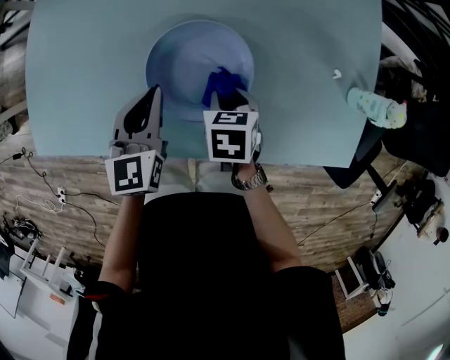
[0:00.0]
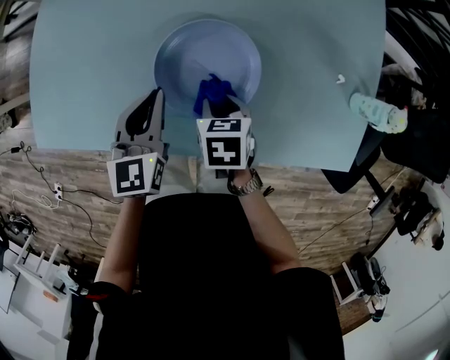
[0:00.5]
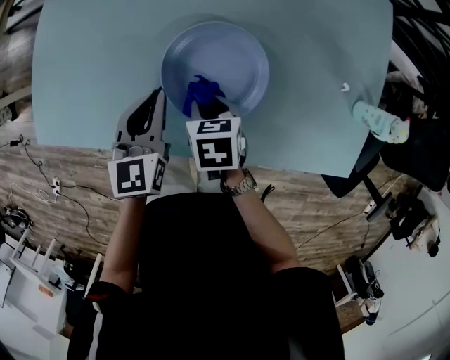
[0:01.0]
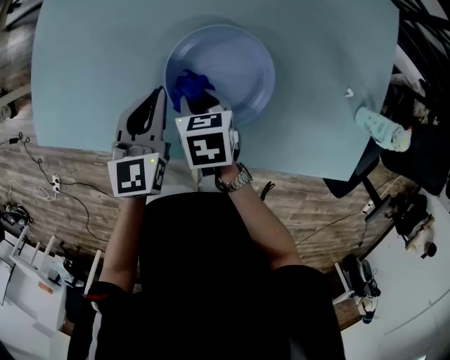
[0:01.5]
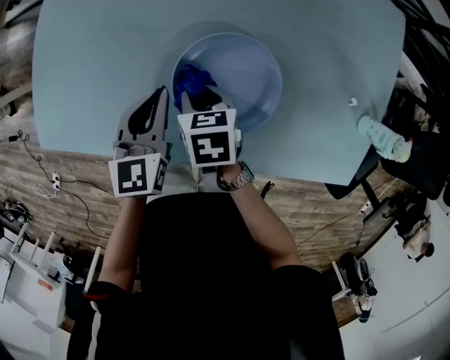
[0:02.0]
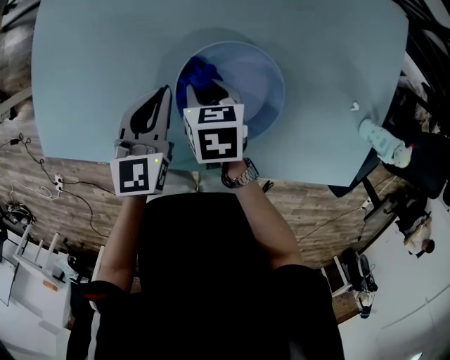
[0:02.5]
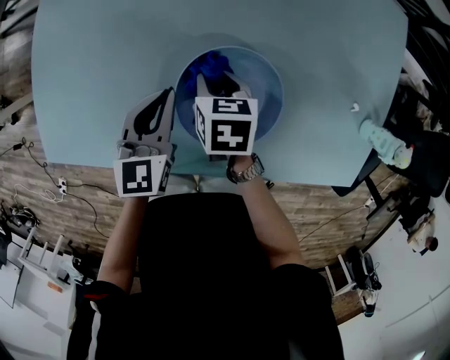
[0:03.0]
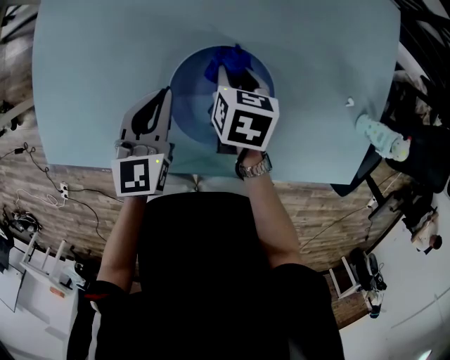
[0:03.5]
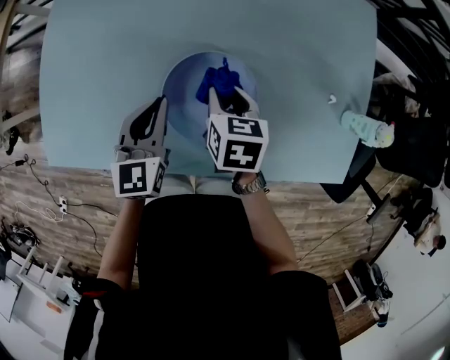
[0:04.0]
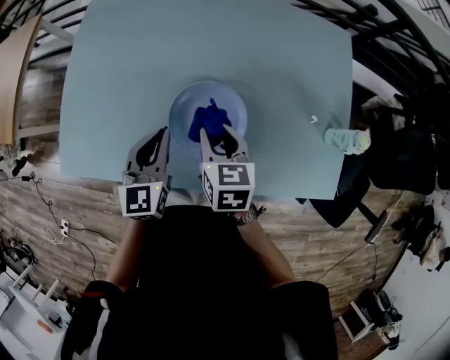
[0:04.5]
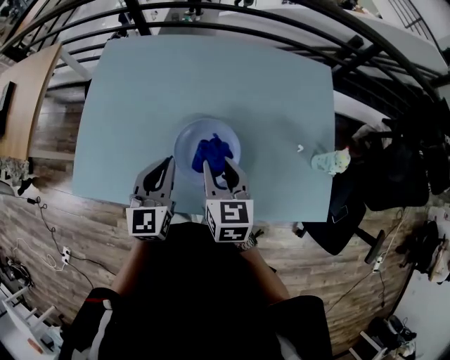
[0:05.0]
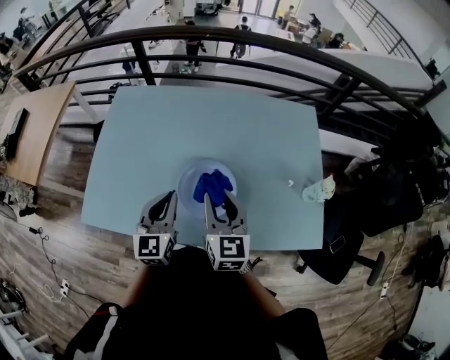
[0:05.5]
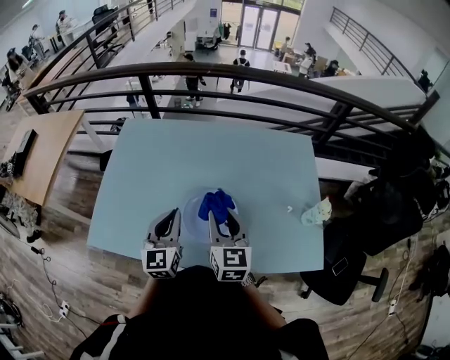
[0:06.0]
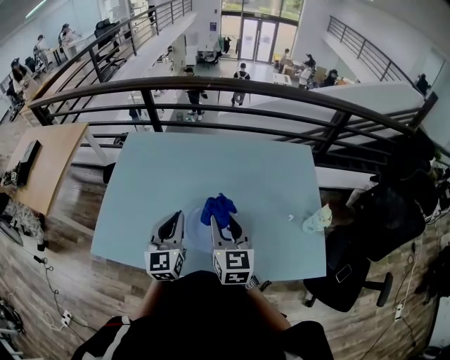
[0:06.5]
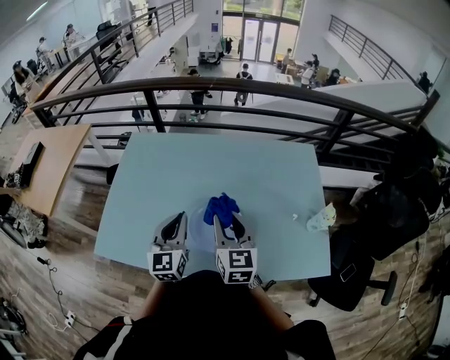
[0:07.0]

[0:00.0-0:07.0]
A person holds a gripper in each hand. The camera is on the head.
0:00.0 to 0:02.0: The right gripper shifts approximately 15 cm to the left and forward. The left gripper moves about 5 cm.
0:02.0 to 0:03.5: The right gripper shifts roughly 15 cm to the right and forward, and turns by approximately 20 degrees.
0:03.5 to 0:05.0: Both grippers travel together upward and backward, approximately 20 cm. The right gripper tilts its fingers some 30 degrees upward.
0:05.0 to 0:07.0: The right gripper moves upward, some 10 cm; the left gripper moves upward, approximately 5 cm.

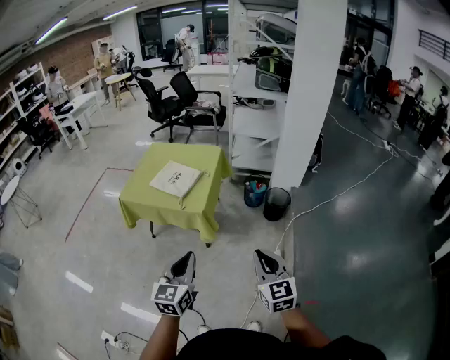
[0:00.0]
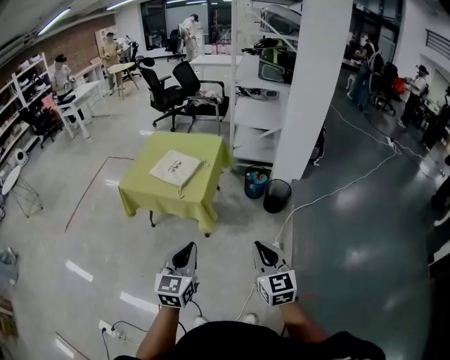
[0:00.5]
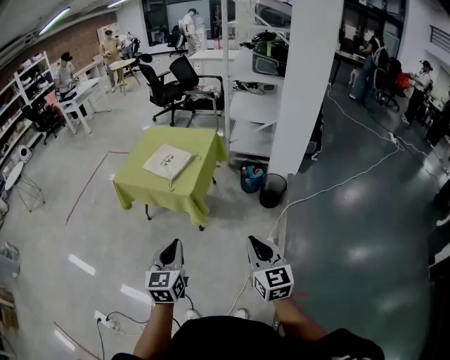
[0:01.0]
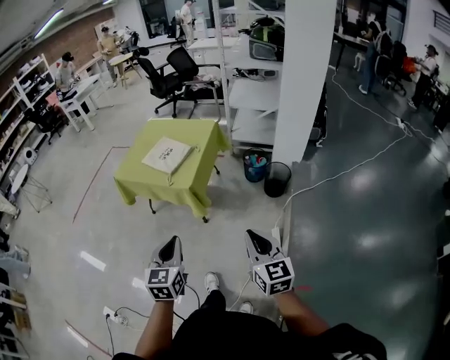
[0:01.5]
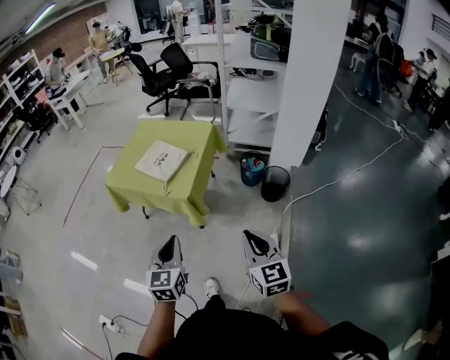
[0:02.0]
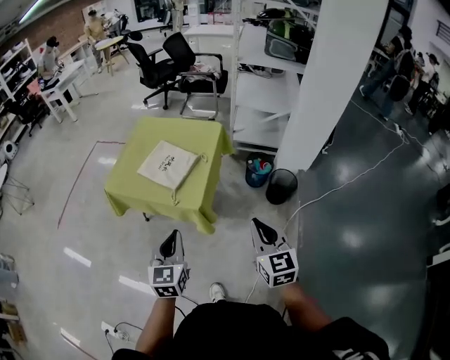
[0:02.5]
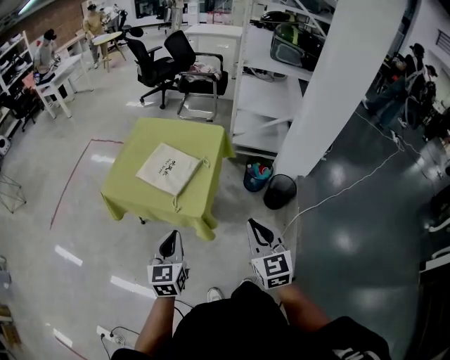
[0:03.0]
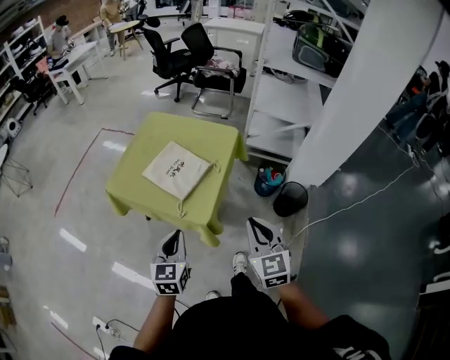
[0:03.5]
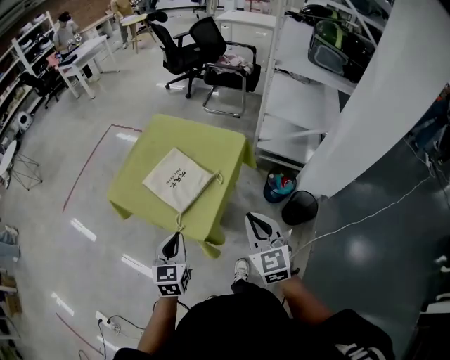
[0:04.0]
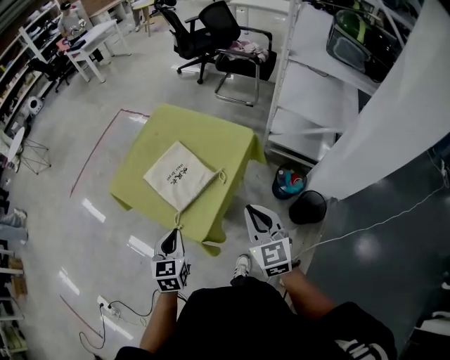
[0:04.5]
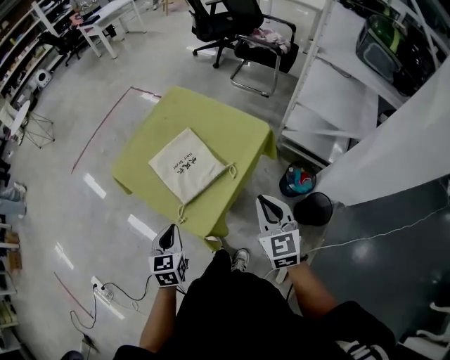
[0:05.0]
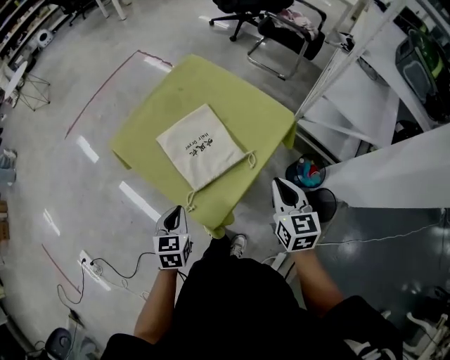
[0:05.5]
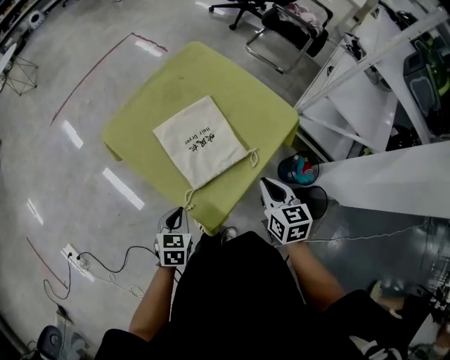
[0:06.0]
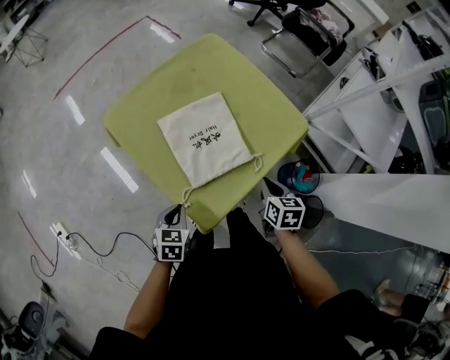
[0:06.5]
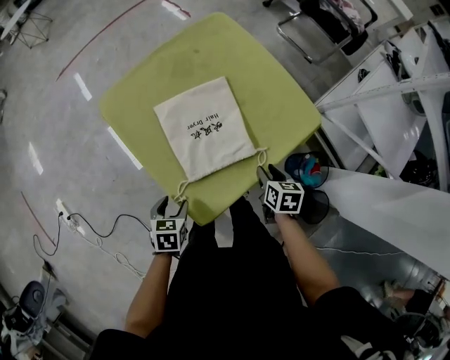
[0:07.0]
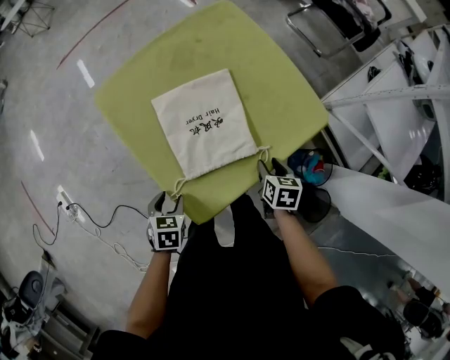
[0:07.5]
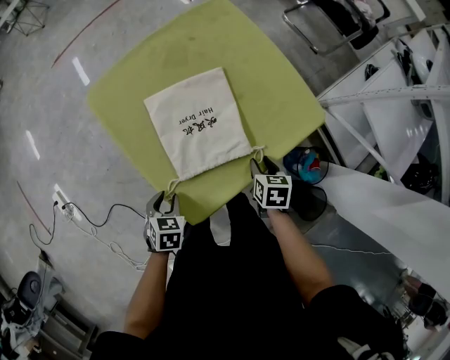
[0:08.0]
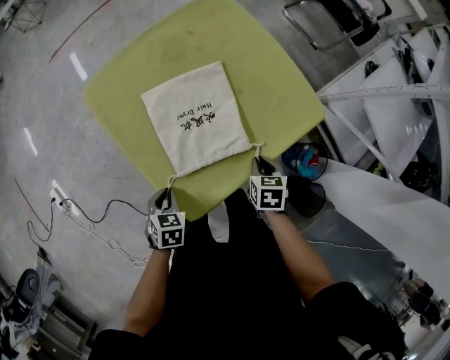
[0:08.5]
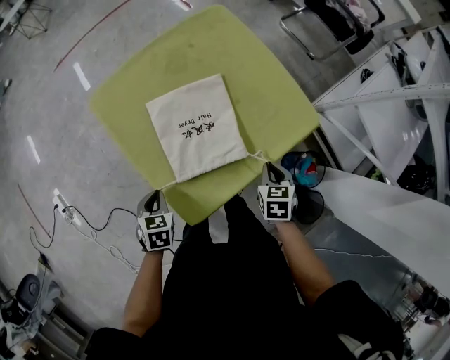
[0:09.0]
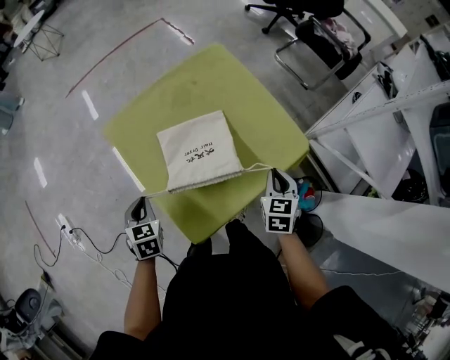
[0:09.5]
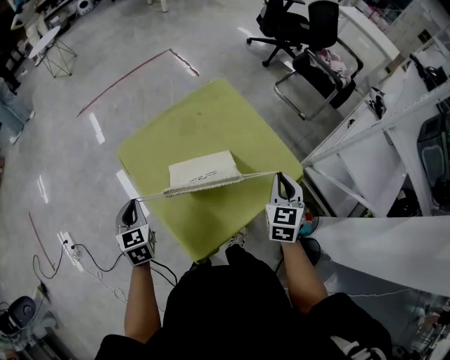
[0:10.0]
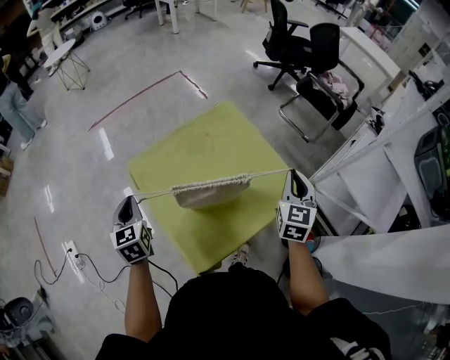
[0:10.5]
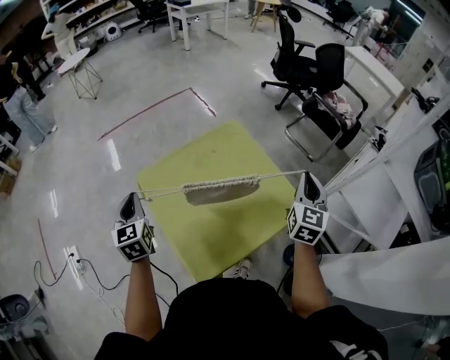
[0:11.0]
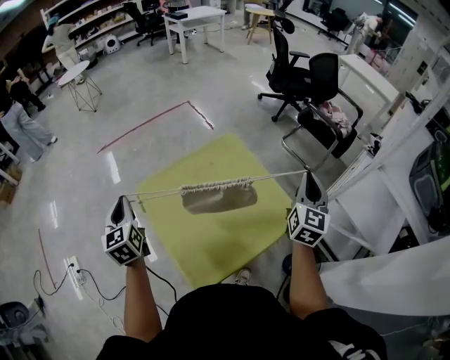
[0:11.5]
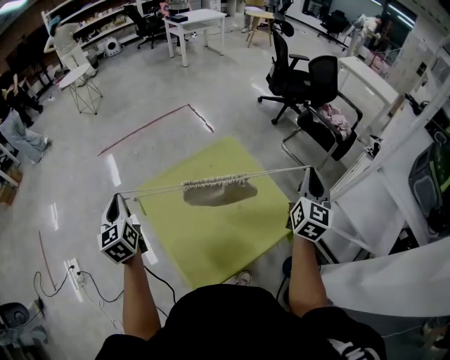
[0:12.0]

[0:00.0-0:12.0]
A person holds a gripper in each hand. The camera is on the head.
0:00.0 to 0:02.0: The left gripper heads forward, covering about 10 cm. The right gripper travels forward and to the right by approximately 10 cm.
0:02.0 to 0:04.0: Both grippers travel together forward, some 35 cm.
0:04.0 to 0:06.0: The right gripper goes some 25 cm forward and downward, and swivels approximately 30 degrees; the left gripper heads downward and forward, covering roughly 20 cm, and swivels roughly 30 degrees.
0:06.0 to 0:08.0: The right gripper is displaced downward and forward by roughly 20 cm, changes its angle by some 20 degrees, and opens its fingers. Meanwhile the left gripper travels downward by roughly 10 cm, swivels about 20 degrees, and opens.
0:08.0 to 0:10.0: The left gripper shifts some 25 cm upward, forward and to the left, swivels roughly 40 degrees, and closes. The right gripper shifts approximately 25 cm upward, tilts its fingers roughly 30 degrees upward, and closes.
0:10.0 to 0:12.0: The left gripper is displaced upward and forward by roughly 20 cm, and rotates some 30 degrees. Meanwhile the right gripper goes about 20 cm upward, forward and to the right, and swivels roughly 30 degrees.

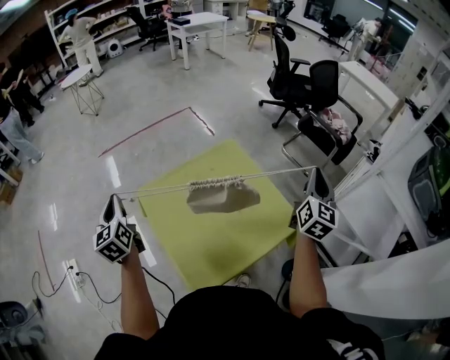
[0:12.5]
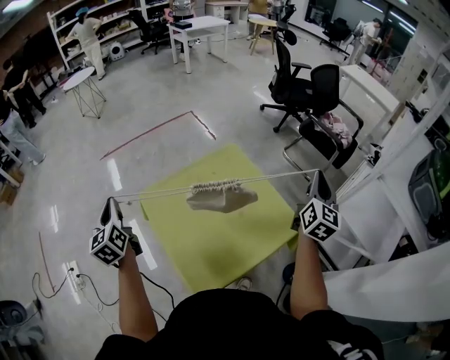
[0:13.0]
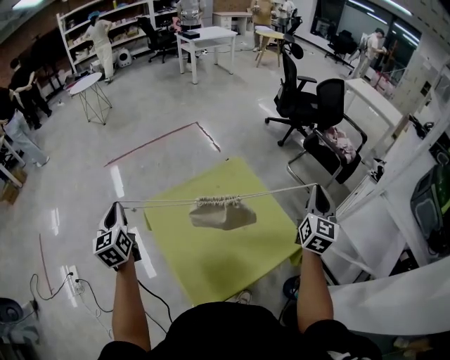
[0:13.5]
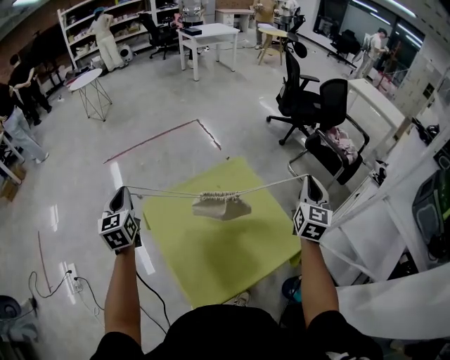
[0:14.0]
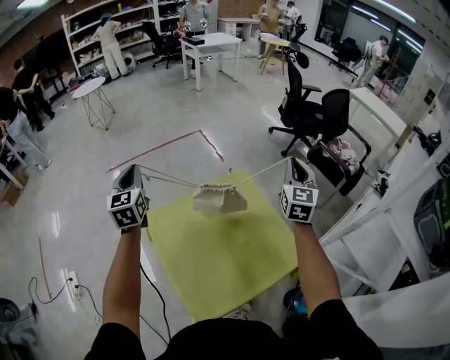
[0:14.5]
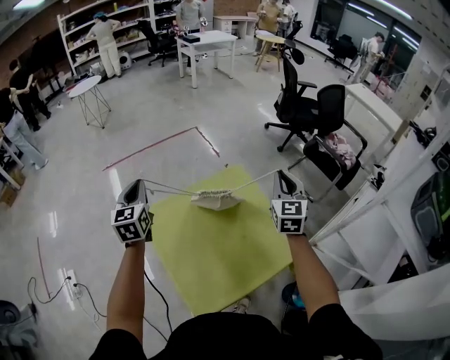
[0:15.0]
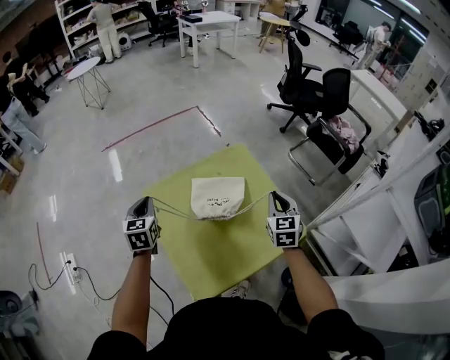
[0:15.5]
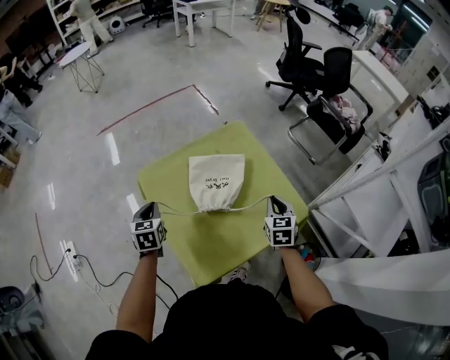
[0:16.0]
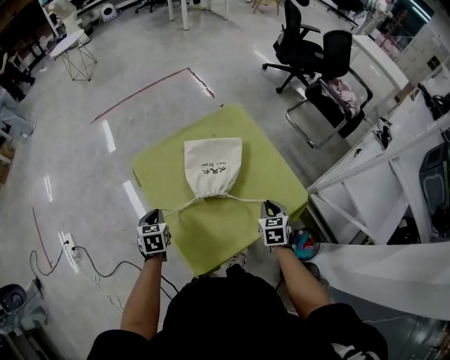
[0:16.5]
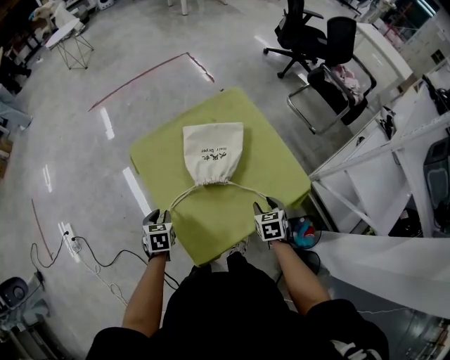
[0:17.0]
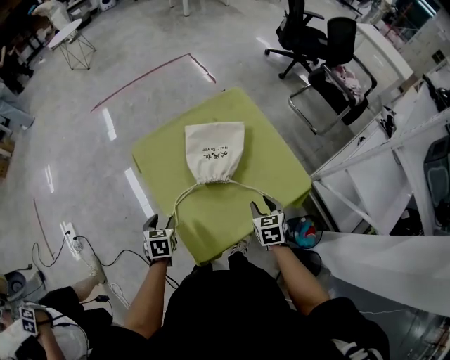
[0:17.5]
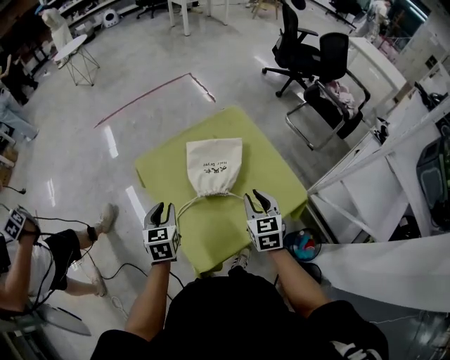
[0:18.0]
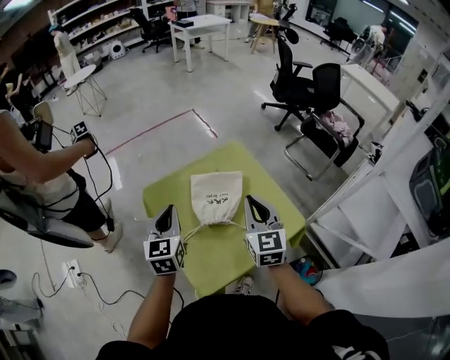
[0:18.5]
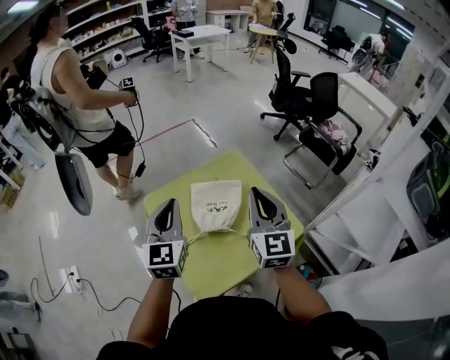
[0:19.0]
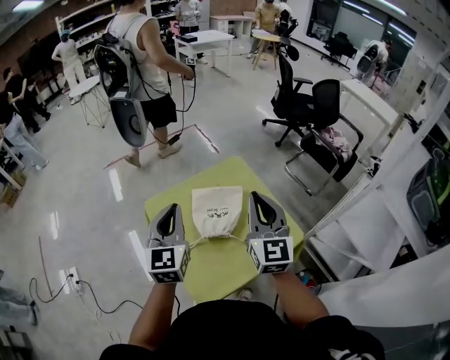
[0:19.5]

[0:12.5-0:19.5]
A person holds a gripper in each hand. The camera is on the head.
0:12.5 to 0:14.5: The left gripper moves forward and upward, approximately 20 cm, while the right gripper goes roughly 20 cm forward and to the left, and changes its angle by approximately 20 degrees.
0:14.5 to 0:16.0: Both grippers move downward and backward, approximately 30 cm. The right gripper angles its fingers downward, by about 30 degrees. The left gripper tilts its fingers some 30 degrees downward.
0:16.0 to 0:17.5: Both grippers travel together backward and downward, some 15 cm. The right gripper opens up. The left gripper opens up.
0:17.5 to 0:19.5: Both grippers move upward, roughly 35 cm. The left gripper tips its fingers upward by roughly 50 degrees, and closes its fingers, while the right gripper points its fingers approximately 50 degrees further upward, and closes up.
